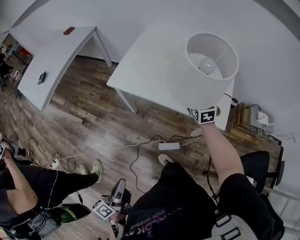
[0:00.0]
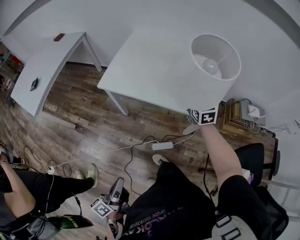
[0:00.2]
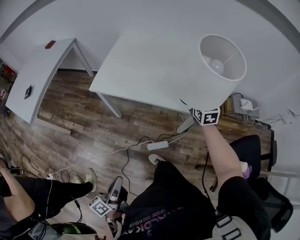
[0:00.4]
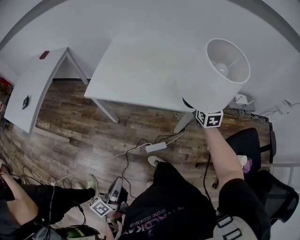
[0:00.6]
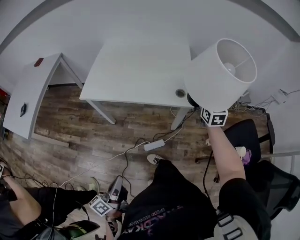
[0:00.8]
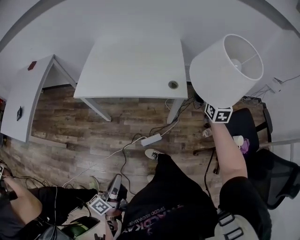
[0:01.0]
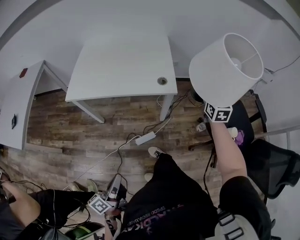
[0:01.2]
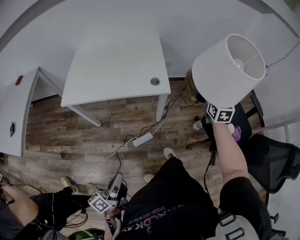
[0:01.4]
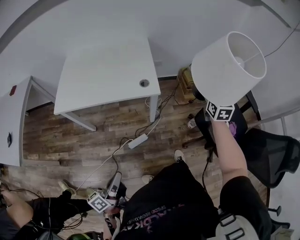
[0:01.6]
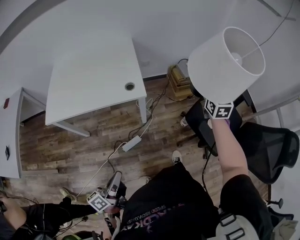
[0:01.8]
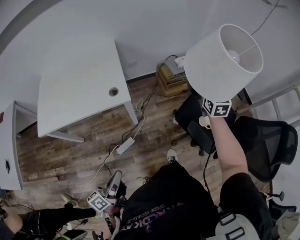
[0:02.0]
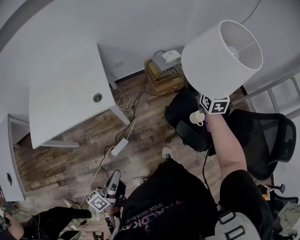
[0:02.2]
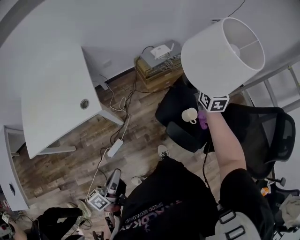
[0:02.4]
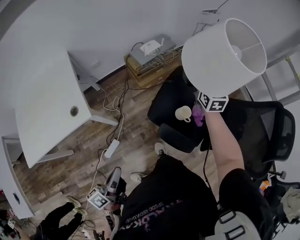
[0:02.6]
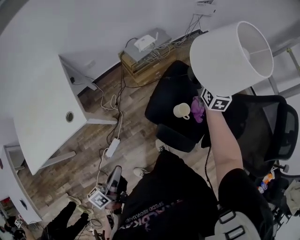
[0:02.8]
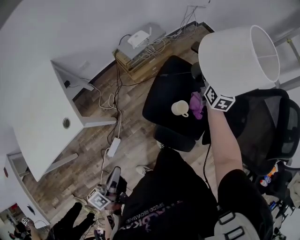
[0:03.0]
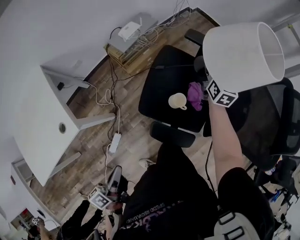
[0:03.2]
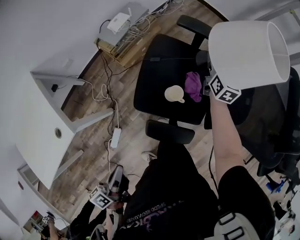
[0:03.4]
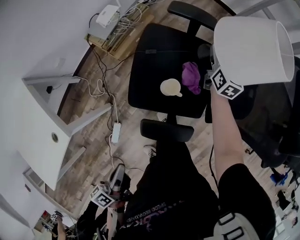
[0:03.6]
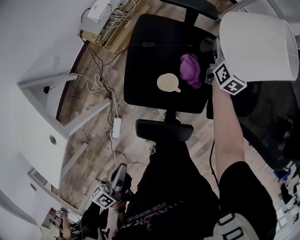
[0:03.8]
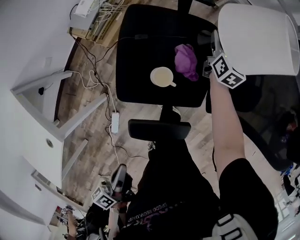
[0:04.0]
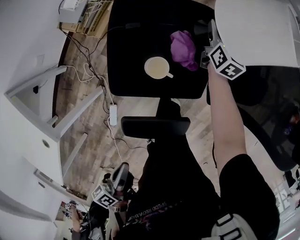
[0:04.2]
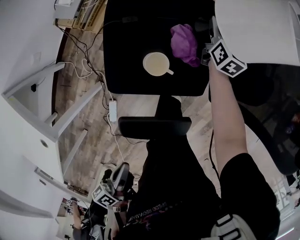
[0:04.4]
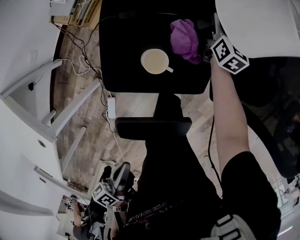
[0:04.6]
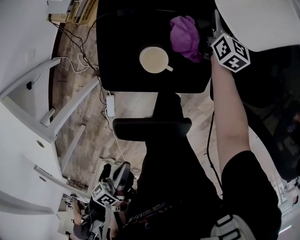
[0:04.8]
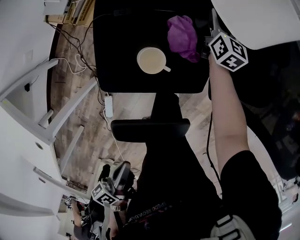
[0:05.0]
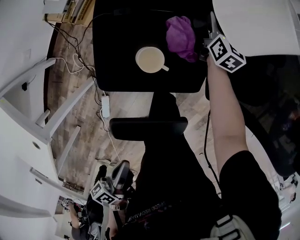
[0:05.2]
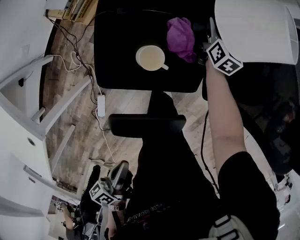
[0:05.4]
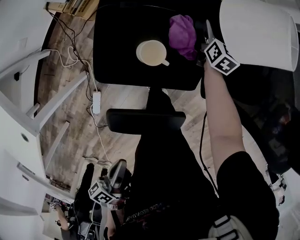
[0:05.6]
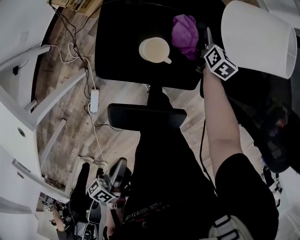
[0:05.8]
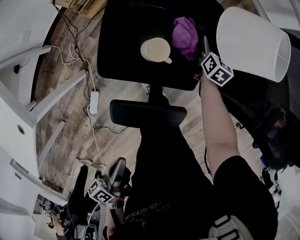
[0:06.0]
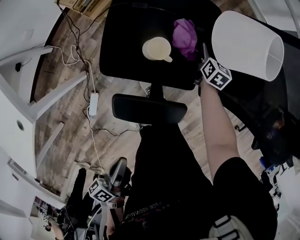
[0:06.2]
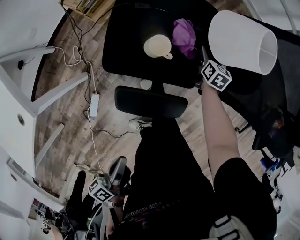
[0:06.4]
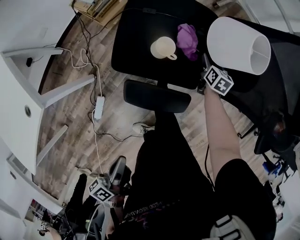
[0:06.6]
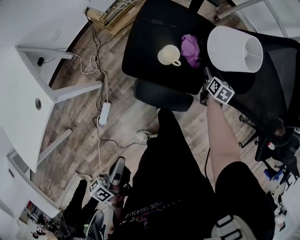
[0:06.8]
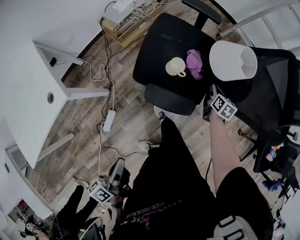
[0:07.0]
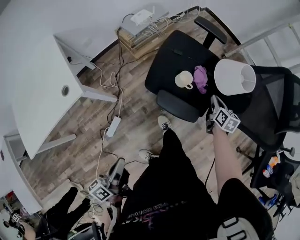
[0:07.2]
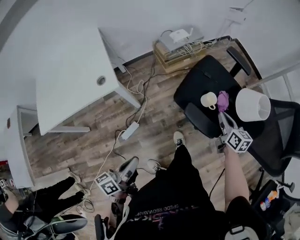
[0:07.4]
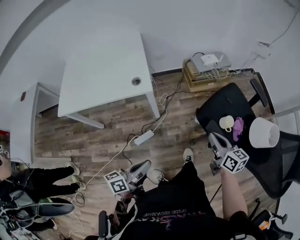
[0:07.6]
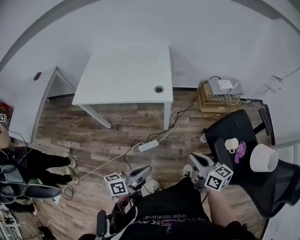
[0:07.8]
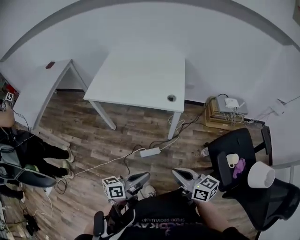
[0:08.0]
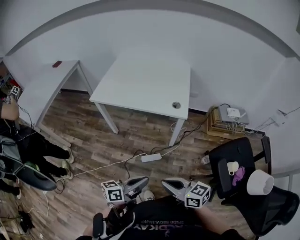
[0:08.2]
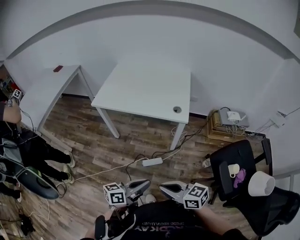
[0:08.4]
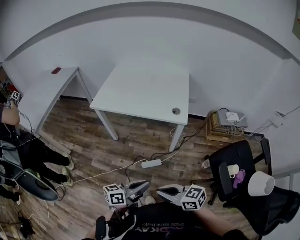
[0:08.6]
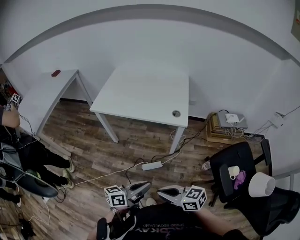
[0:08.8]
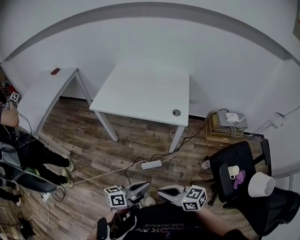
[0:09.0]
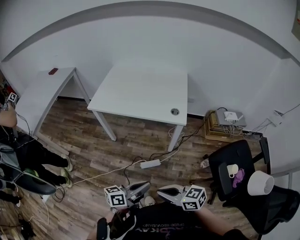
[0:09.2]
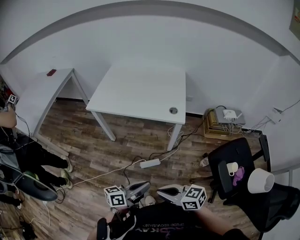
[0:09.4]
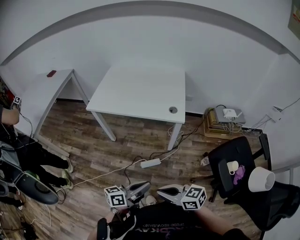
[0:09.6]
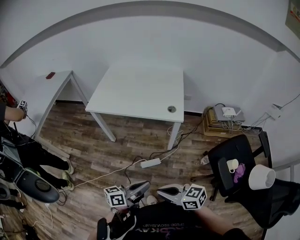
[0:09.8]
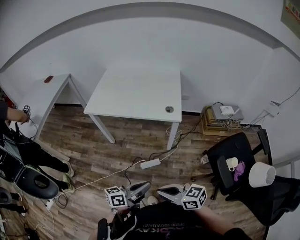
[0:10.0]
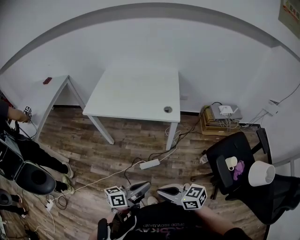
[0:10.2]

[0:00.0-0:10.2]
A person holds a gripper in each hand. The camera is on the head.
0:00.0 to 0:01.4: The left gripper shifts by about 10 cm, and swivels about 30 degrees; the right gripper shifts by some 50 cm, and swivels roughly 40 degrees.
0:01.4 to 0:03.0: The pair of grippers is taken about 40 cm. The right gripper turns by some 40 degrees, while the left gripper swivels some 30 degrees.
0:03.0 to 0:04.4: The right gripper travels downward and to the right by approximately 40 cm, and turns by some 30 degrees, while the left gripper travels to the right, downward and forward by some 20 cm, and swivels about 30 degrees.
0:04.4 to 0:05.8: The left gripper shifts by approximately 5 cm. Meanwhile the right gripper heads downward and backward, covering roughly 10 cm, and opens up.
0:05.8 to 0:07.2: The right gripper travels upward and backward by approximately 30 cm, swivels about 20 degrees, and closes up. Meanwhile the left gripper shifts about 20 cm backward, upward and to the left, and changes its angle by some 30 degrees.
0:07.2 to 0:08.8: The right gripper ends up roughly 70 cm from where it was, and swivels approximately 110 degrees; the left gripper moves roughly 20 cm, and turns by about 20 degrees.
0:08.8 to 0:10.2: The grippers stay close to where they were, moving slightly.

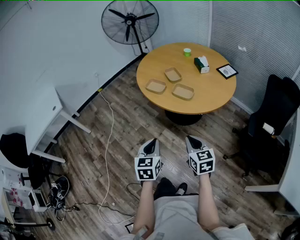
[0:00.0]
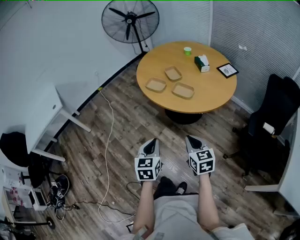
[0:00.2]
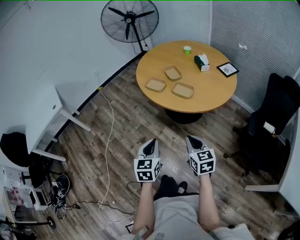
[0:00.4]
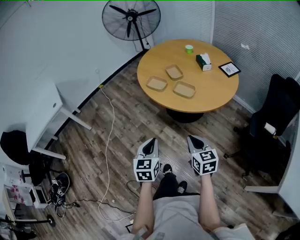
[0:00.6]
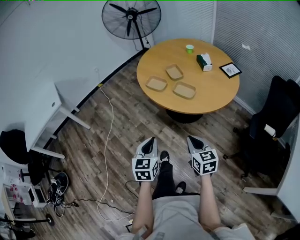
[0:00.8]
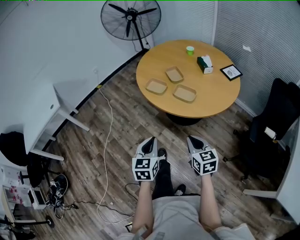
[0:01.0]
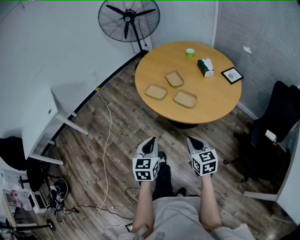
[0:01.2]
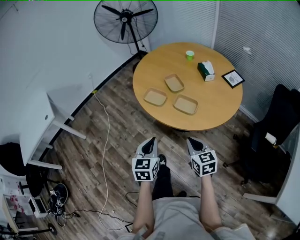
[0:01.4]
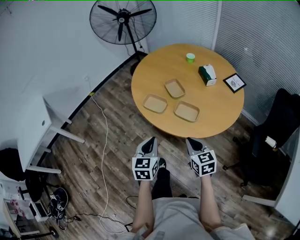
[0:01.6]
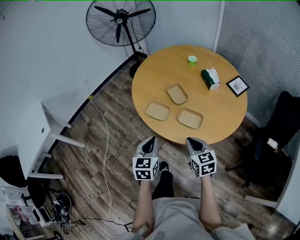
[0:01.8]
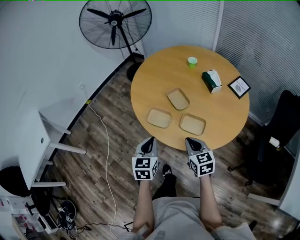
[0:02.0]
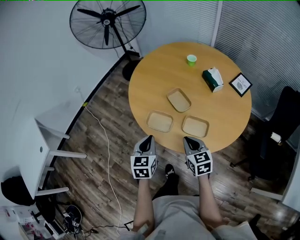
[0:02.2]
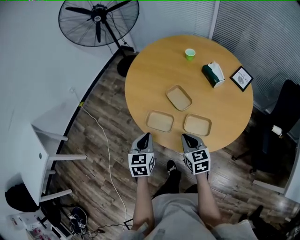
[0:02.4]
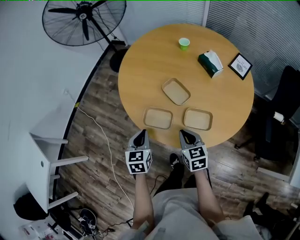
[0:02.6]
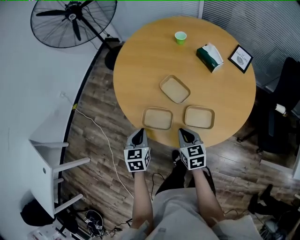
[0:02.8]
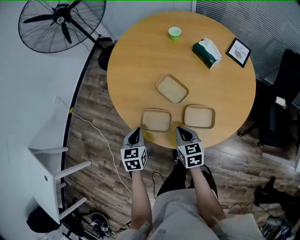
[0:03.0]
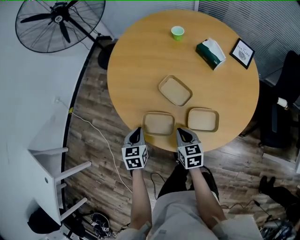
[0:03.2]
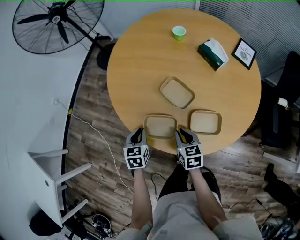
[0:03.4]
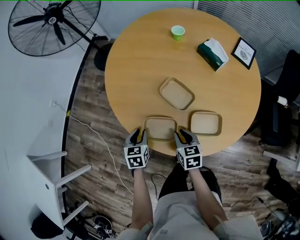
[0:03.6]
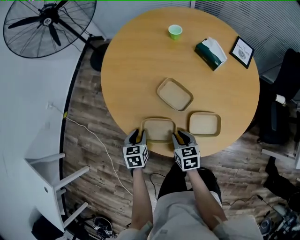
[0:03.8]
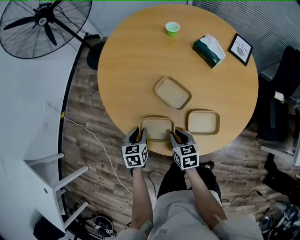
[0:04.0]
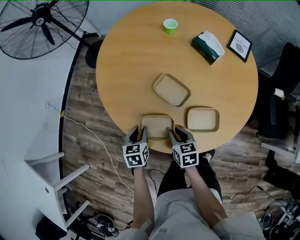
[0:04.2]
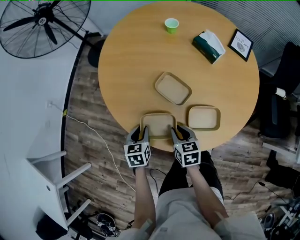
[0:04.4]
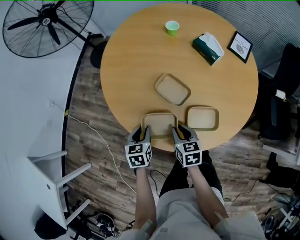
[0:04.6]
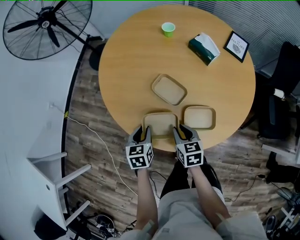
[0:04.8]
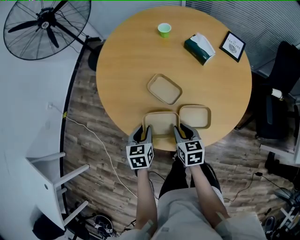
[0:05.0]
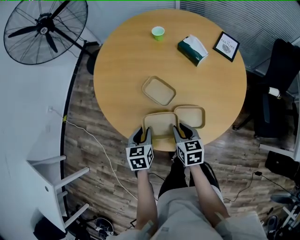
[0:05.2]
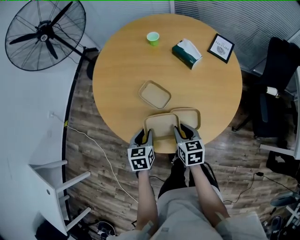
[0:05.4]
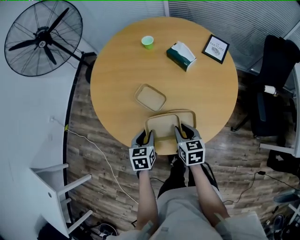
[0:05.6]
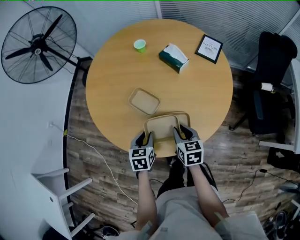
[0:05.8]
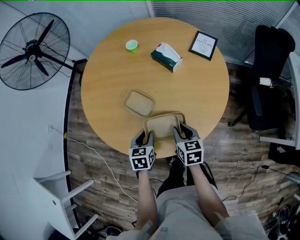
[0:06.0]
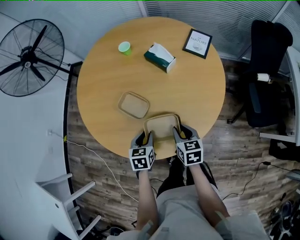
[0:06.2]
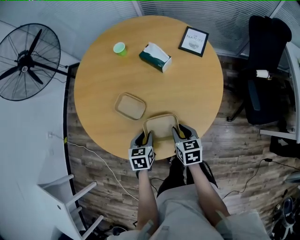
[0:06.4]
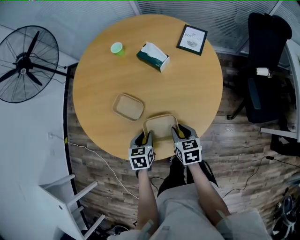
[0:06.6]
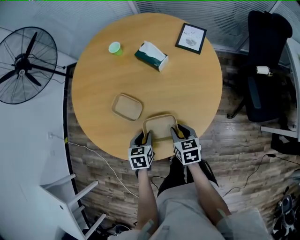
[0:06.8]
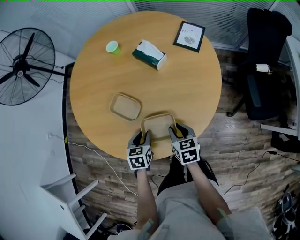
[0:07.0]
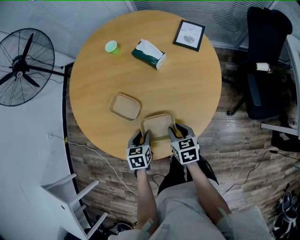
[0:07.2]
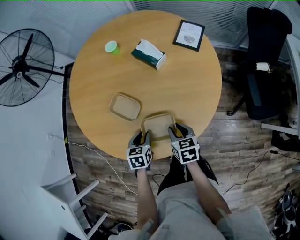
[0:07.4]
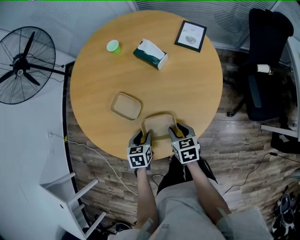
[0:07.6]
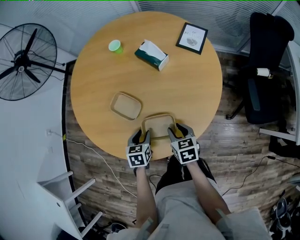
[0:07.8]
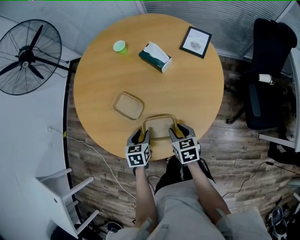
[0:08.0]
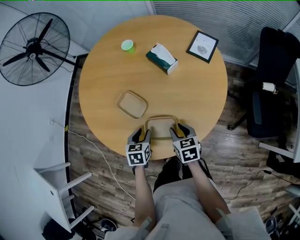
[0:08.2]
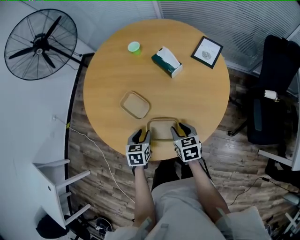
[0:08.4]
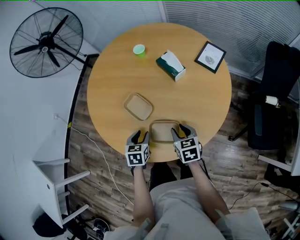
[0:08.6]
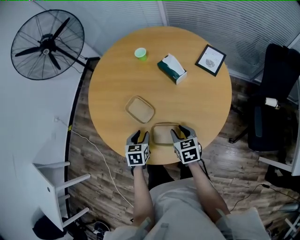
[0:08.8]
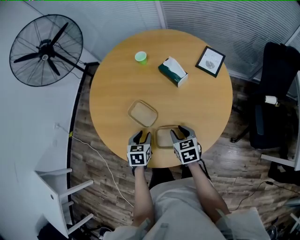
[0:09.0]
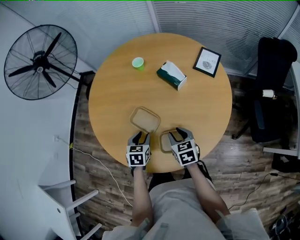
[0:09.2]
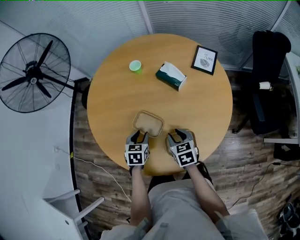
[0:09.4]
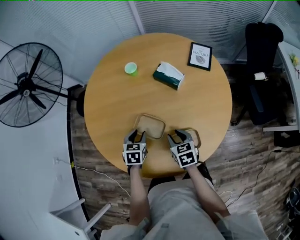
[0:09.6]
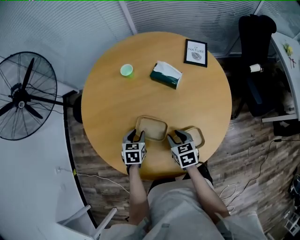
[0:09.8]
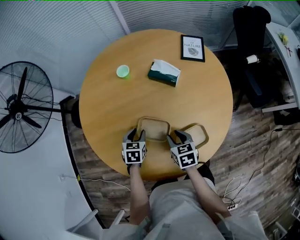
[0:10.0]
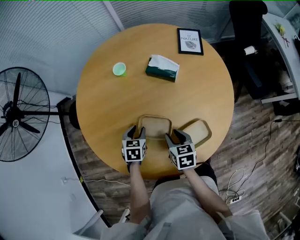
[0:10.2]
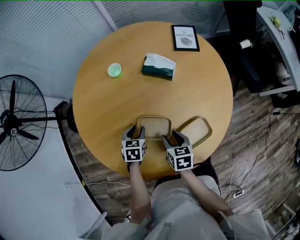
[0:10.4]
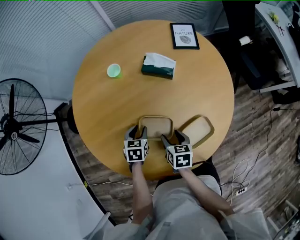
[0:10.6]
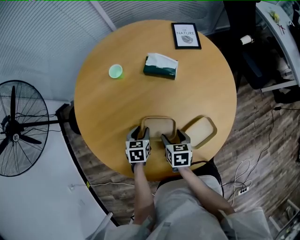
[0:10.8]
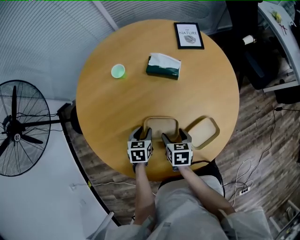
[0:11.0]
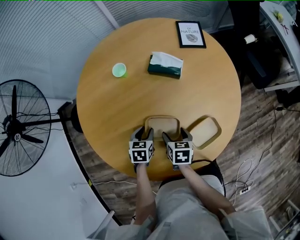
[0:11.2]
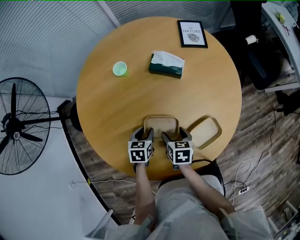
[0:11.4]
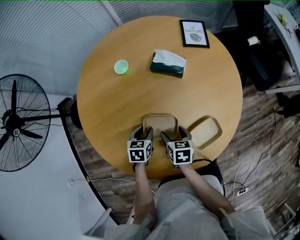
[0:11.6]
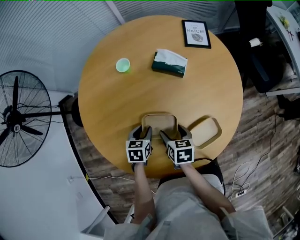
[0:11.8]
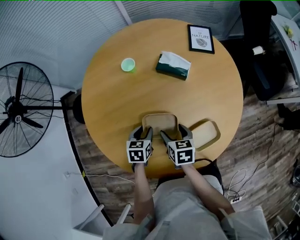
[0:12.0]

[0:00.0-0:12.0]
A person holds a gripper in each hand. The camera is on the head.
0:00.0 to 0:01.6: Both grippers move forward, roughly 20 cm.
0:01.6 to 0:03.0: Both grippers travel together forward and downward, approximately 30 cm. The left gripper changes its angle by roughly 20 degrees. The right gripper swivels about 30 degrees.
0:03.0 to 0:04.4: Both grippers travel together downward, approximately 5 cm. The left gripper opens up.
0:04.4 to 0:06.0: The two grippers go some 20 cm to the right.
0:06.0 to 0:07.6: The right gripper shifts by roughly 5 cm; the left gripper changes place by some 5 cm.
0:07.6 to 0:09.0: The left gripper heads upward, covering some 5 cm. The right gripper travels forward by some 5 cm.
0:09.0 to 0:10.4: The left gripper ends up about 20 cm from where it was, and rotates some 30 degrees. Meanwhile the right gripper moves about 15 cm, and rotates approximately 40 degrees.
0:10.4 to 0:12.0: The right gripper opens its fingers.

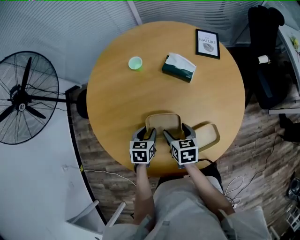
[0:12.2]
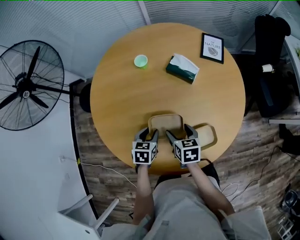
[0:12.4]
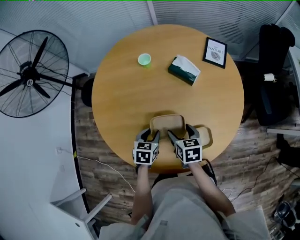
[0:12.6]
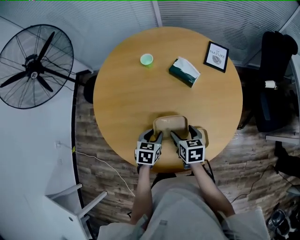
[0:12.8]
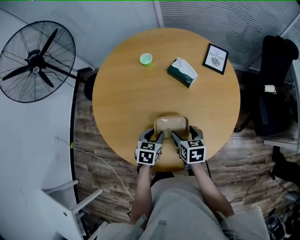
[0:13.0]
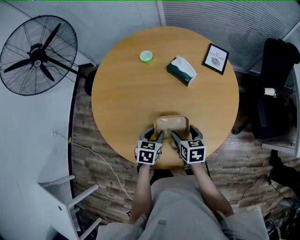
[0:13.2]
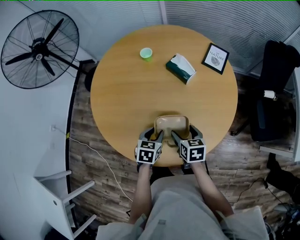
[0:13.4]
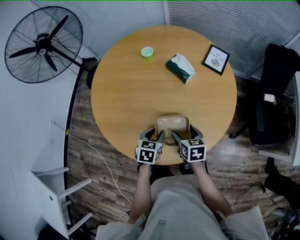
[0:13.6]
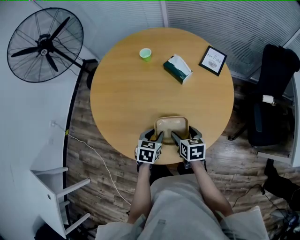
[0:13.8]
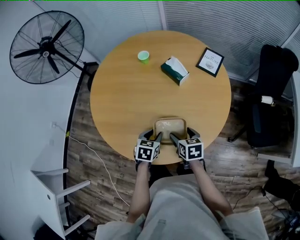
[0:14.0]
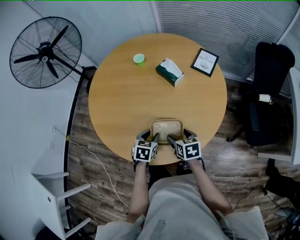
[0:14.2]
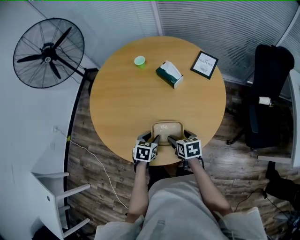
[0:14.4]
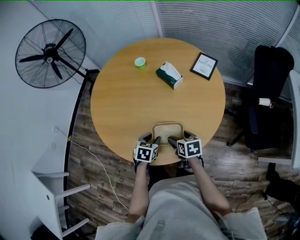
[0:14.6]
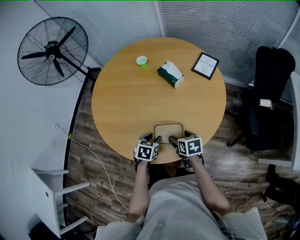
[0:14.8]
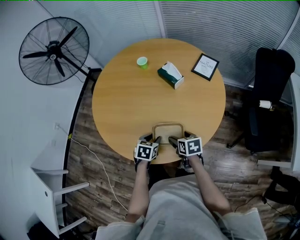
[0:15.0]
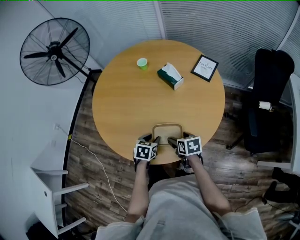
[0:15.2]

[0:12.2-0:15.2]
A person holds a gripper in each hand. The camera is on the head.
0:12.2 to 0:13.8: The grippers both shift to the right and backward by some 20 cm. The right gripper swivels roughly 20 degrees.
0:13.8 to 0:15.2: The right gripper ends up some 5 cm from where it was.
